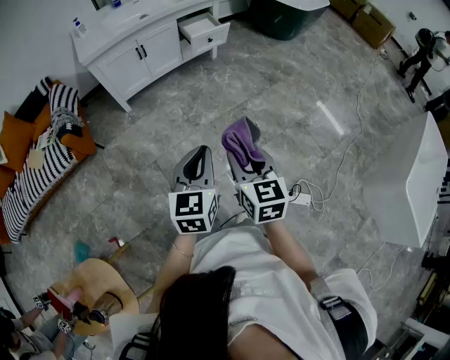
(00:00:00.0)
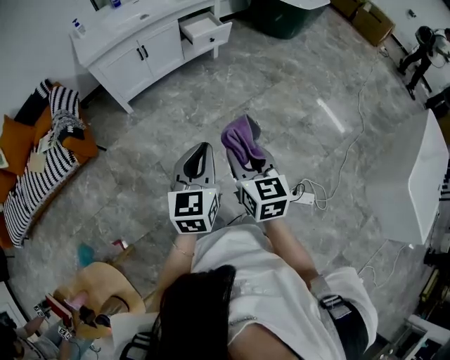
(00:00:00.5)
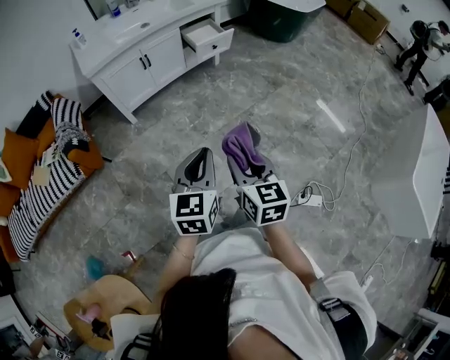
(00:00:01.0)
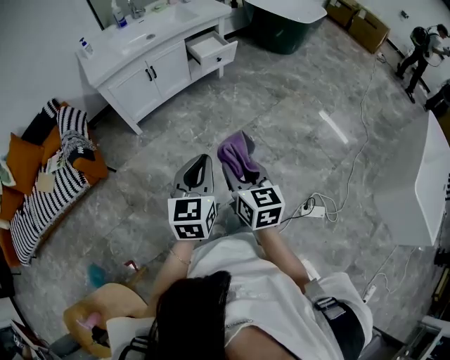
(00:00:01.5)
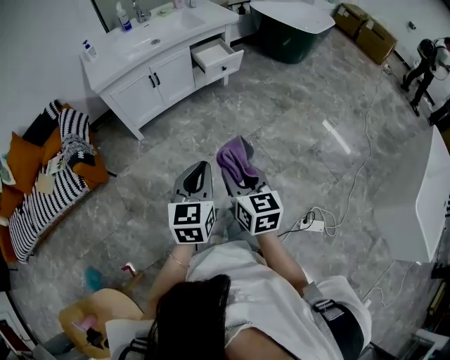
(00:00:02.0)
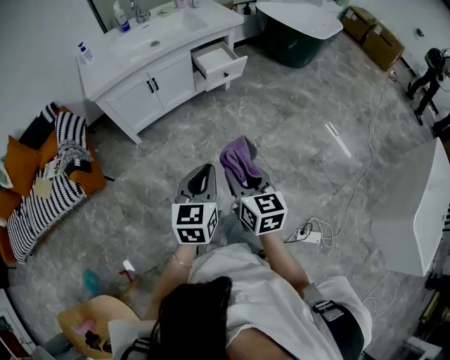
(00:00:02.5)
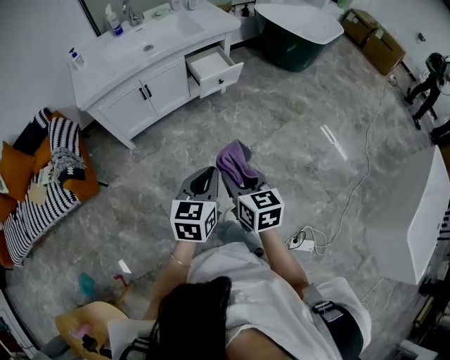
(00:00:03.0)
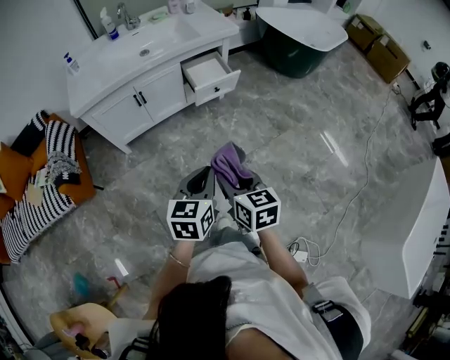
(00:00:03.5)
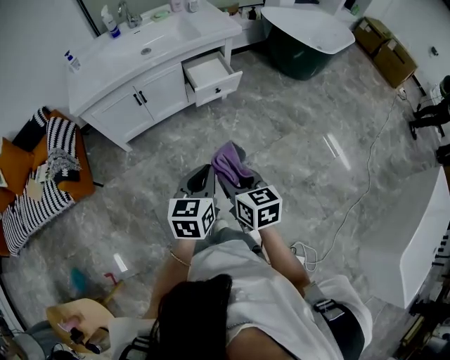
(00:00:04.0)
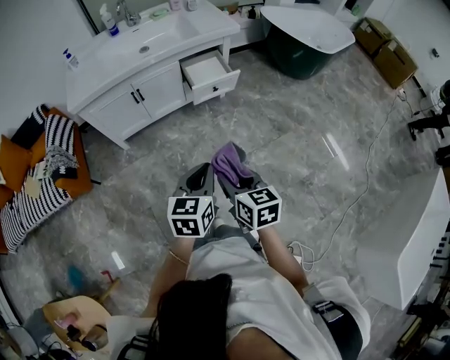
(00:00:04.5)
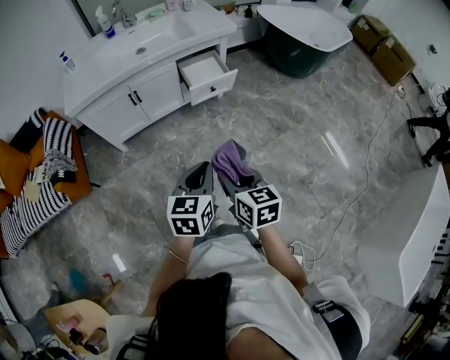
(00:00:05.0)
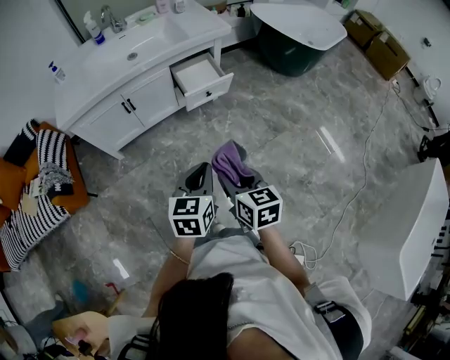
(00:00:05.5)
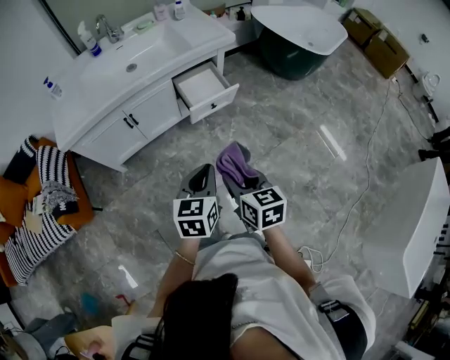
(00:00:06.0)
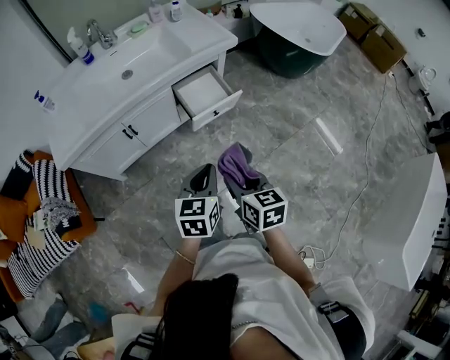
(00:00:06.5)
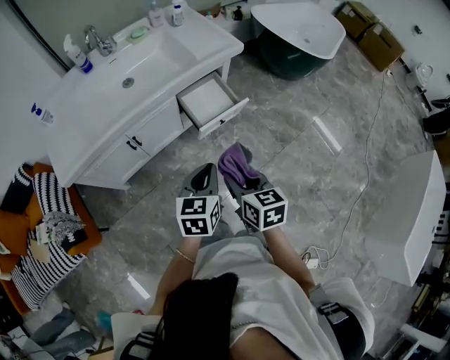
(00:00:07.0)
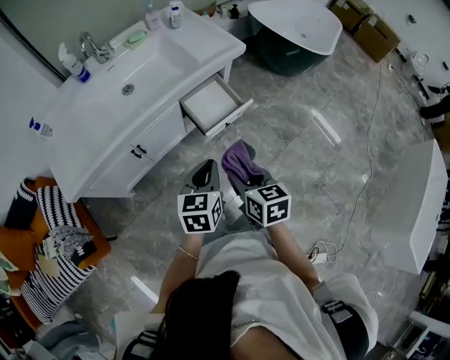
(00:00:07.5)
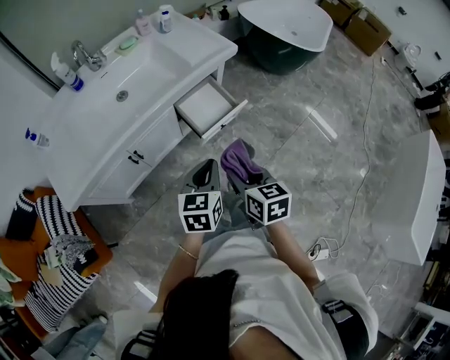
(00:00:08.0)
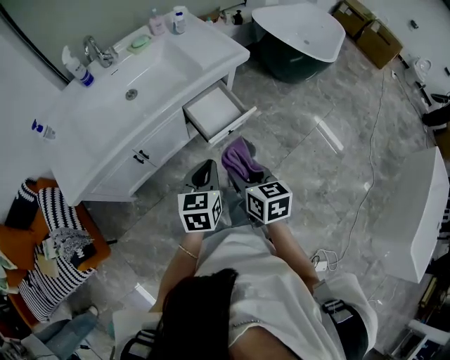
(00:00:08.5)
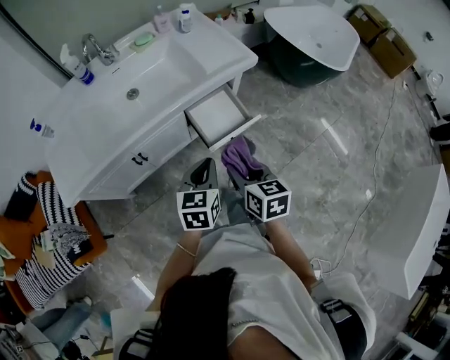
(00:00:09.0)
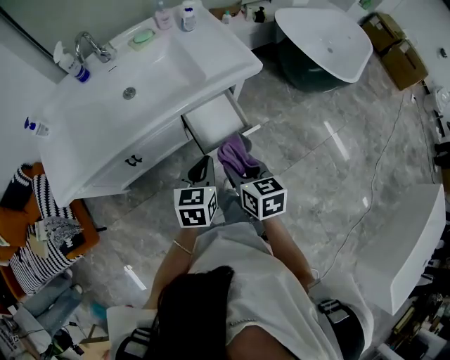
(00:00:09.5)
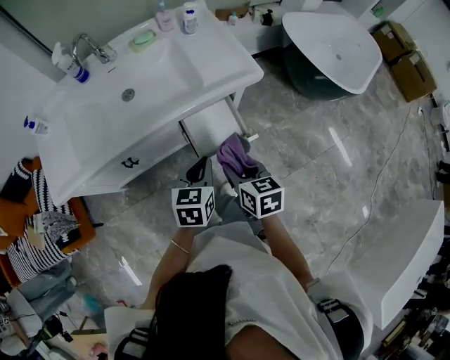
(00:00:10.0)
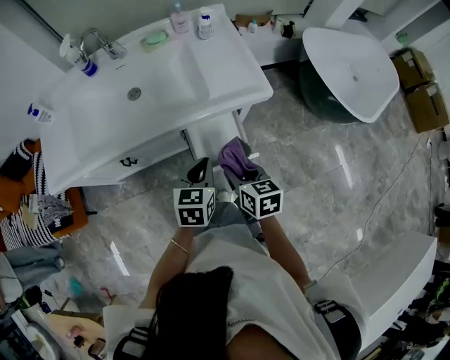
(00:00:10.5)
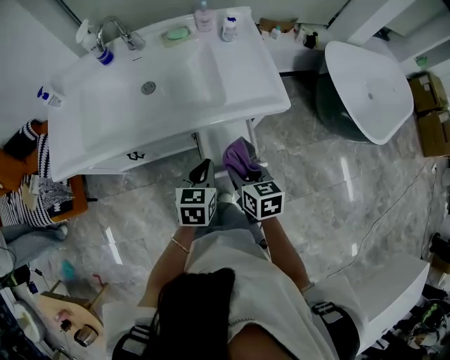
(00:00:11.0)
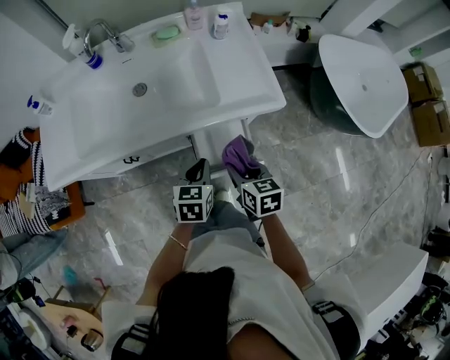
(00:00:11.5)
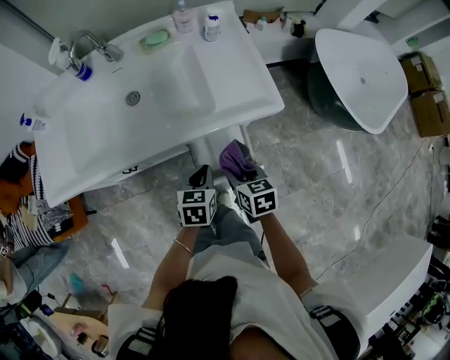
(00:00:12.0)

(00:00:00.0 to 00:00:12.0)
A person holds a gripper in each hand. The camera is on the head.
00:00:00.0 - 00:00:02.0: Both grippers move forward and to the left, about 15 cm.
00:00:02.0 - 00:00:04.0: The grippers both shift forward and to the right by roughly 25 cm.
00:00:04.0 - 00:00:06.0: Both grippers travel together forward, some 15 cm.
00:00:06.0 - 00:00:08.0: The two grippers go some 20 cm forward and to the left.
00:00:08.0 - 00:00:10.0: Both grippers move forward, roughly 20 cm.
00:00:10.0 - 00:00:12.0: The grippers both shift forward and downward by roughly 15 cm.

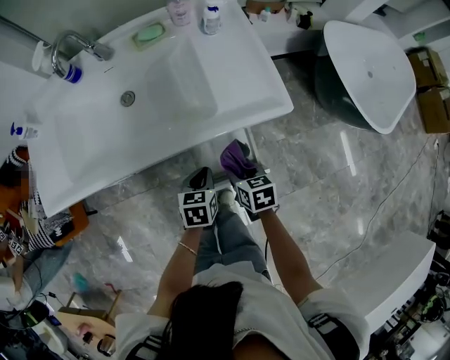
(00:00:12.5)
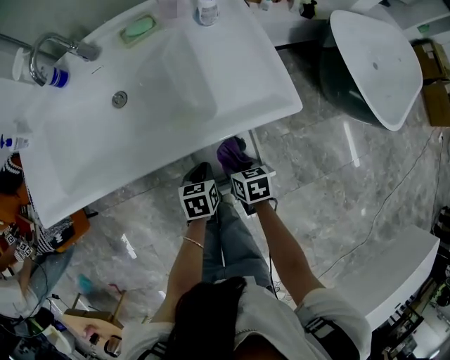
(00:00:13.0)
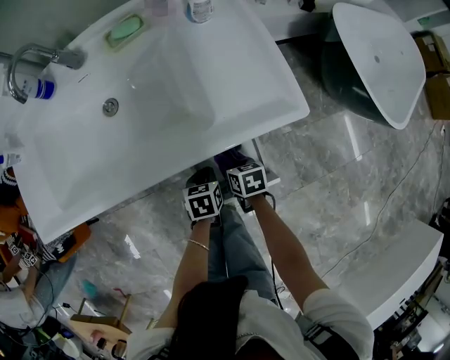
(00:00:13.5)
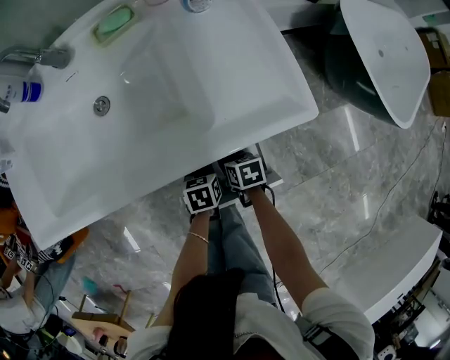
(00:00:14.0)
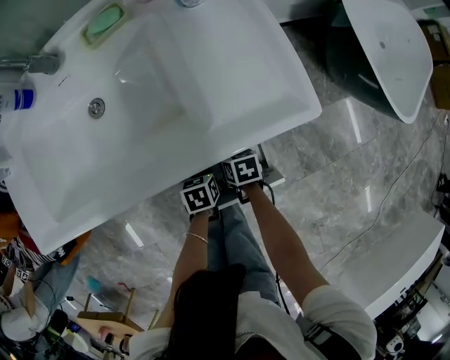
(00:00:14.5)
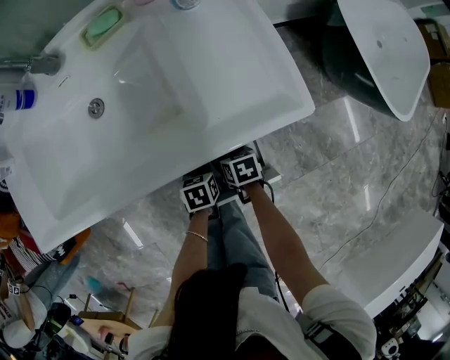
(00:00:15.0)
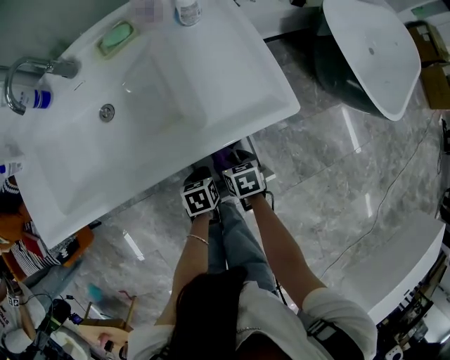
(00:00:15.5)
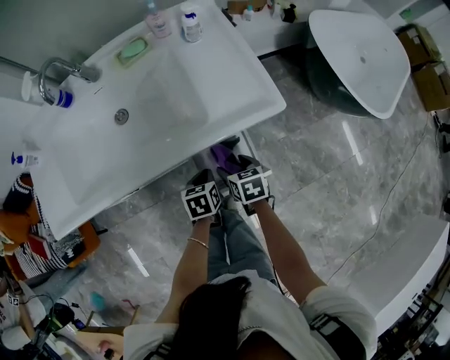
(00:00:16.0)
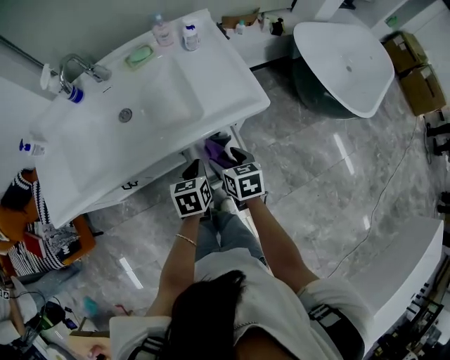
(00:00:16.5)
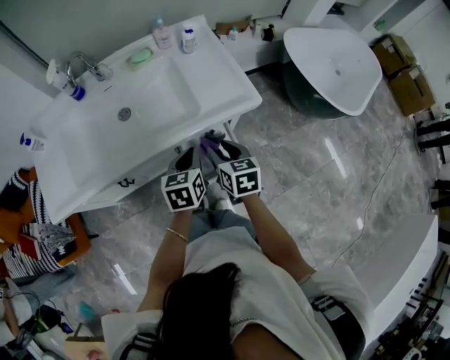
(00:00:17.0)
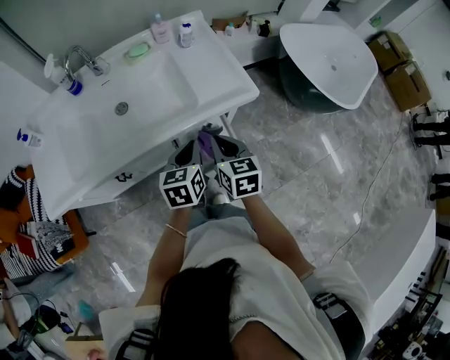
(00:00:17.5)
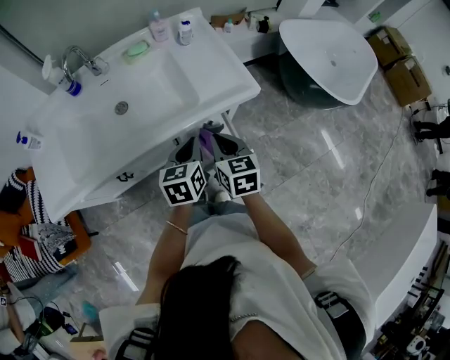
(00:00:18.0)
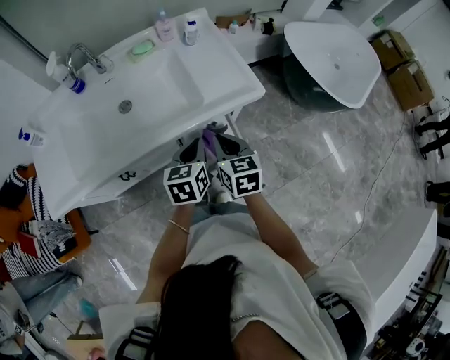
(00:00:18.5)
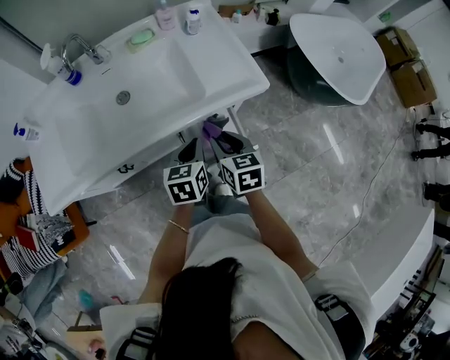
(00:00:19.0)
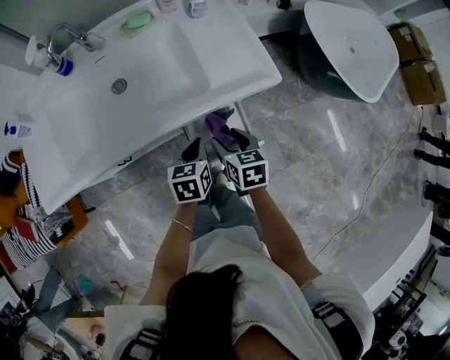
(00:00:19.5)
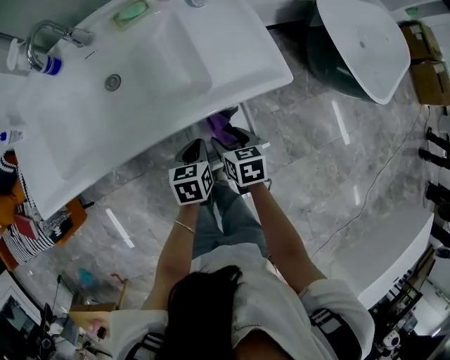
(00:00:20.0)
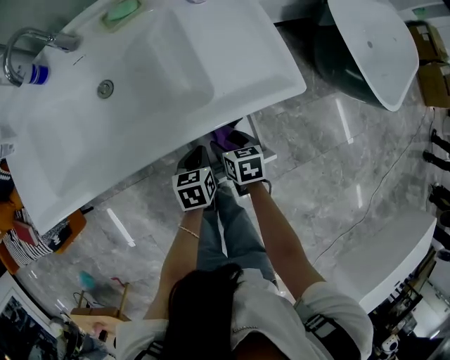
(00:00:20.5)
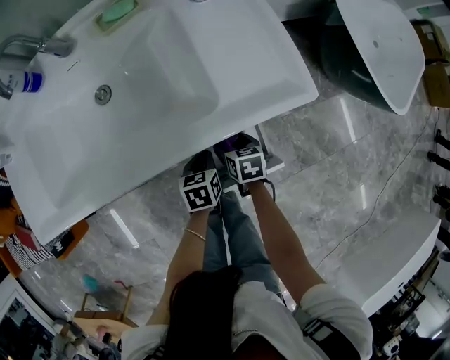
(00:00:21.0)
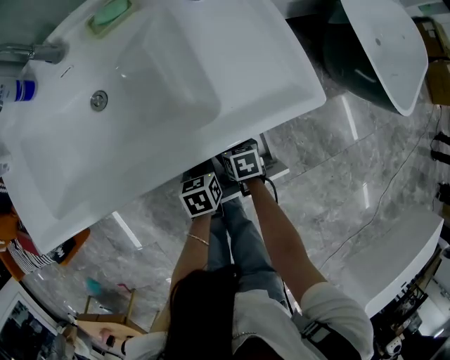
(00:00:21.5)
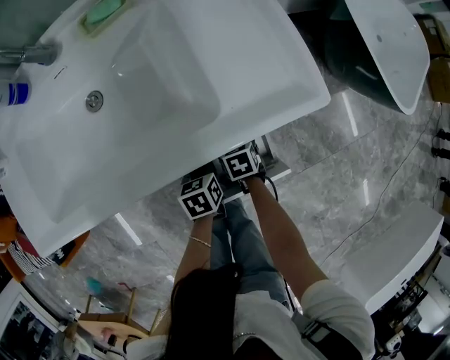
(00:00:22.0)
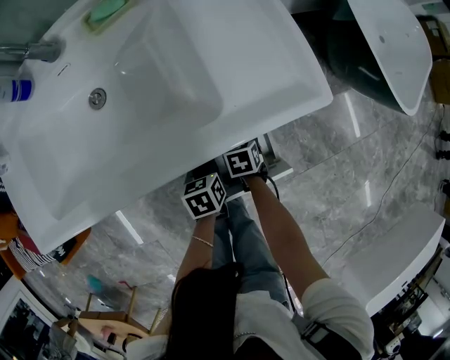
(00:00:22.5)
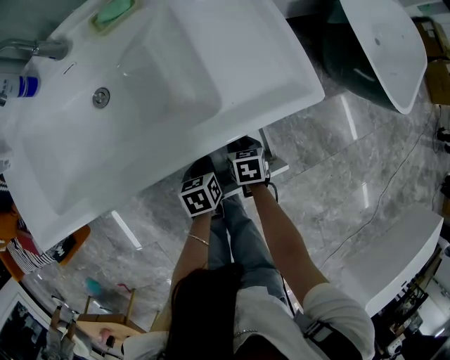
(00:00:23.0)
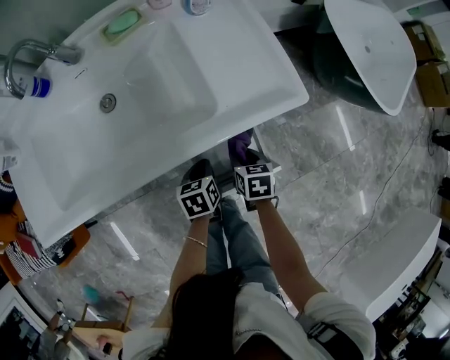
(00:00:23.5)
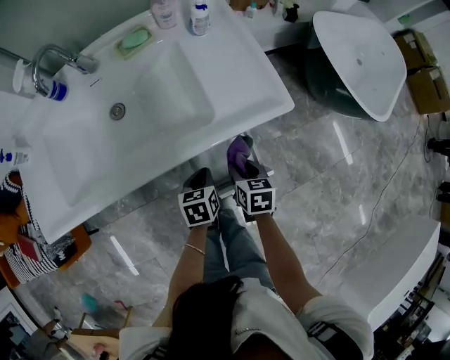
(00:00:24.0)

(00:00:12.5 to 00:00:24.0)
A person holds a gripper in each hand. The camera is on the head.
00:00:12.5 - 00:00:14.5: Both grippers travel together downward, about 20 cm.
00:00:14.5 - 00:00:16.5: Both grippers travel together upward, approximately 25 cm. The left gripper turns by about 20 degrees; the right gripper rotates approximately 30 degrees, and opens its fingers.
00:00:16.5 - 00:00:18.5: The two grippers go roughly 10 cm upward. The right gripper closes up.
00:00:18.5 - 00:00:20.0: Both grippers travel together downward, roughly 15 cm. The right gripper rotates approximately 20 degrees, and opens its fingers.
00:00:20.0 - 00:00:22.0: The grippers both shift downward by about 20 cm.
00:00:22.0 - 00:00:24.0: The left gripper heads upward, covering approximately 10 cm. Meanwhile the right gripper heads upward, covering roughly 20 cm, swivels about 20 degrees, and closes its fingers.

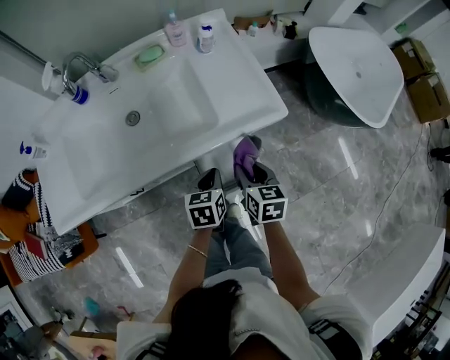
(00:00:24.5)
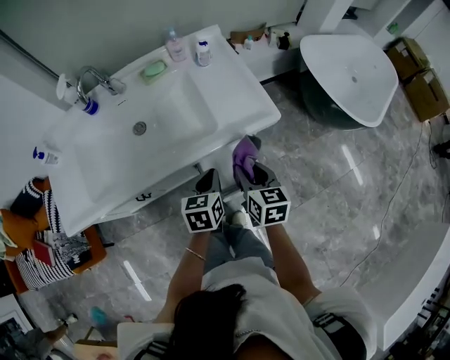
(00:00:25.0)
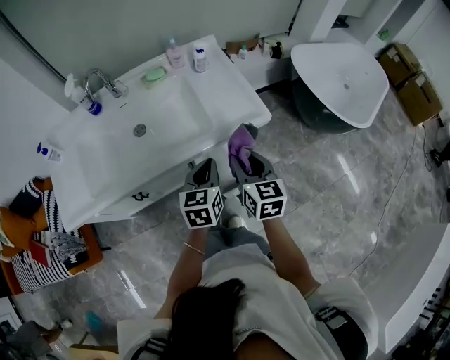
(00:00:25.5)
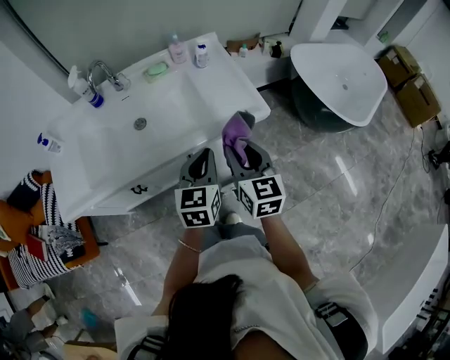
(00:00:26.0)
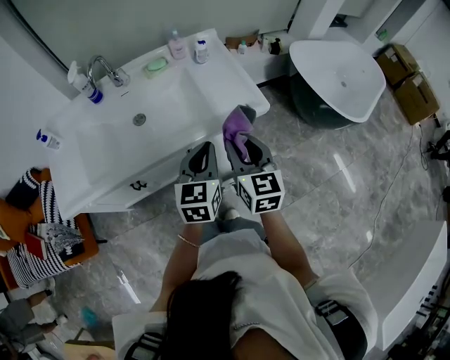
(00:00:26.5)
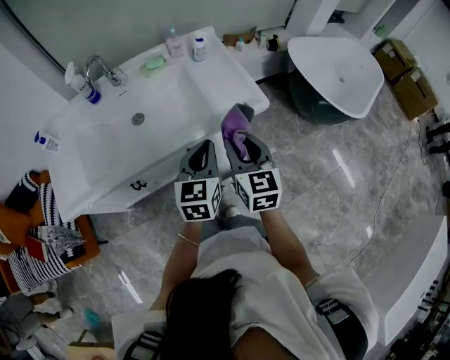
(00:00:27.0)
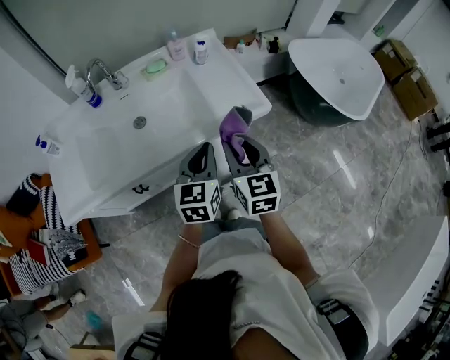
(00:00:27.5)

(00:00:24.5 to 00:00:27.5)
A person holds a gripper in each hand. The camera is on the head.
00:00:24.5 - 00:00:26.0: The grippers both shift upward by some 20 cm. The left gripper turns by approximately 30 degrees; the right gripper changes its angle by roughly 30 degrees.
00:00:26.0 - 00:00:27.5: The grippers make only small movements.
